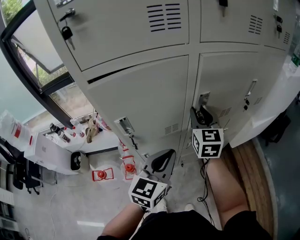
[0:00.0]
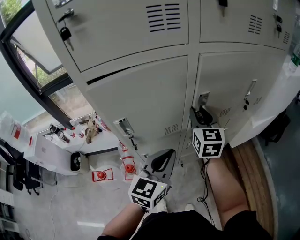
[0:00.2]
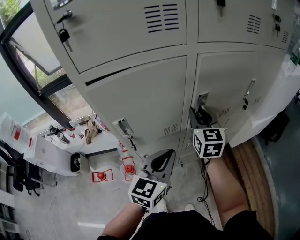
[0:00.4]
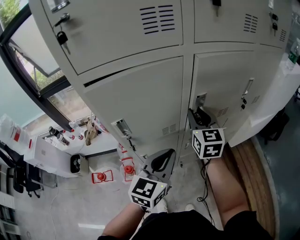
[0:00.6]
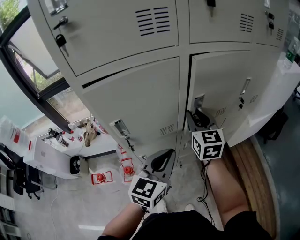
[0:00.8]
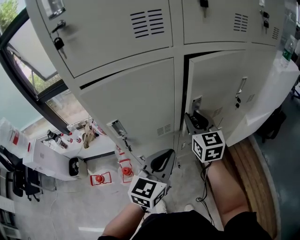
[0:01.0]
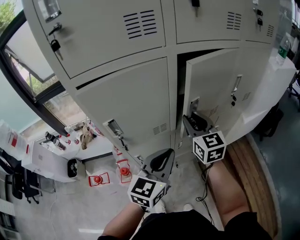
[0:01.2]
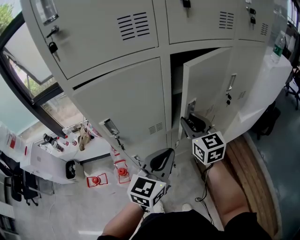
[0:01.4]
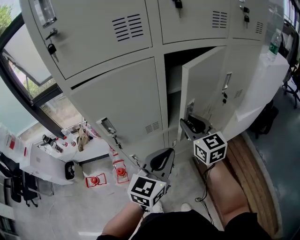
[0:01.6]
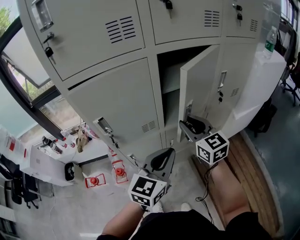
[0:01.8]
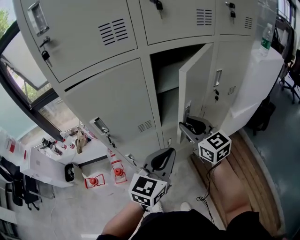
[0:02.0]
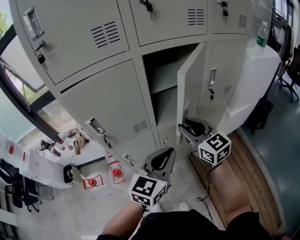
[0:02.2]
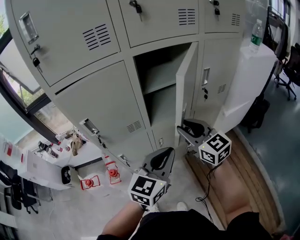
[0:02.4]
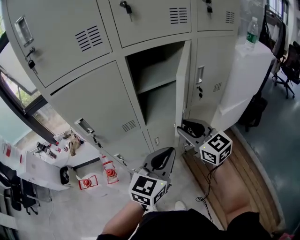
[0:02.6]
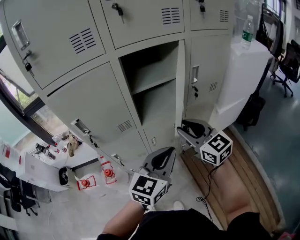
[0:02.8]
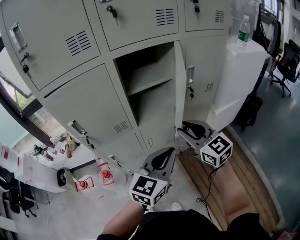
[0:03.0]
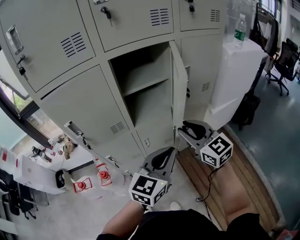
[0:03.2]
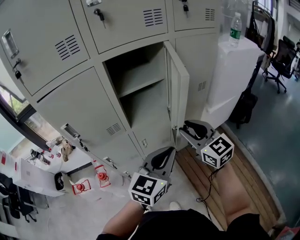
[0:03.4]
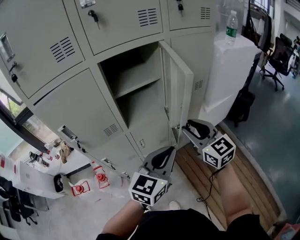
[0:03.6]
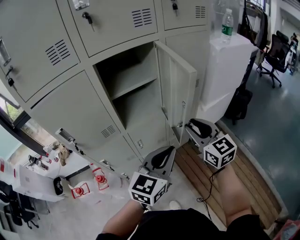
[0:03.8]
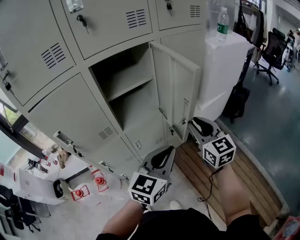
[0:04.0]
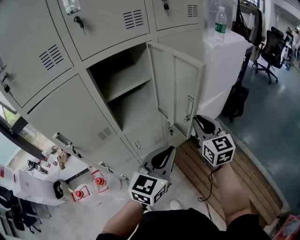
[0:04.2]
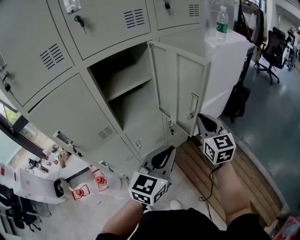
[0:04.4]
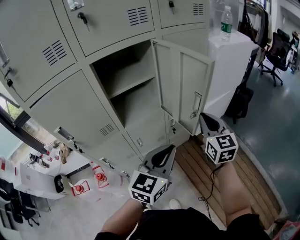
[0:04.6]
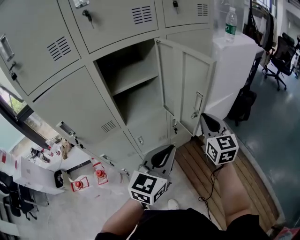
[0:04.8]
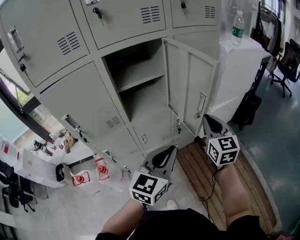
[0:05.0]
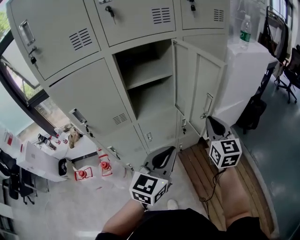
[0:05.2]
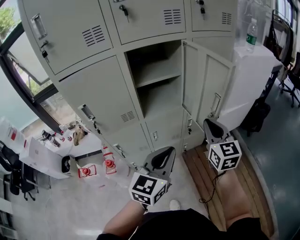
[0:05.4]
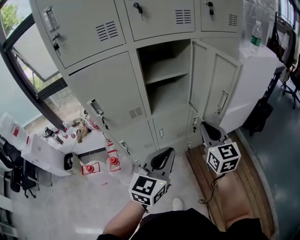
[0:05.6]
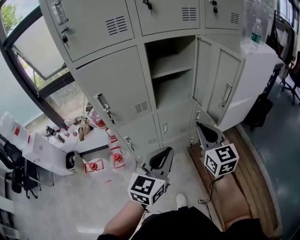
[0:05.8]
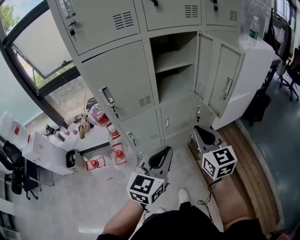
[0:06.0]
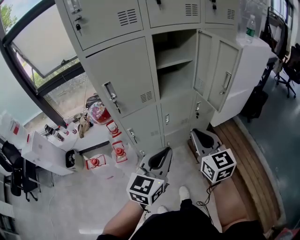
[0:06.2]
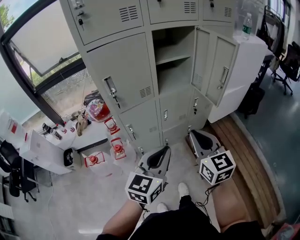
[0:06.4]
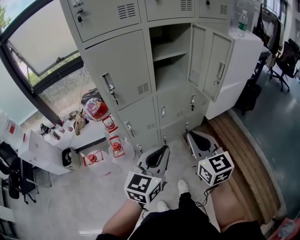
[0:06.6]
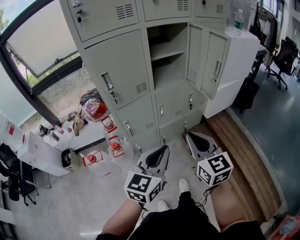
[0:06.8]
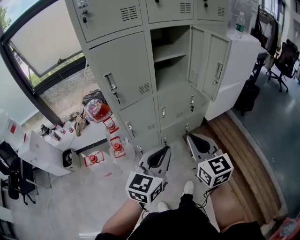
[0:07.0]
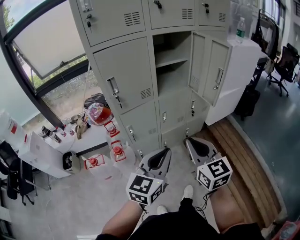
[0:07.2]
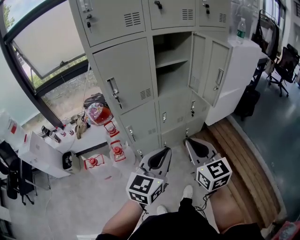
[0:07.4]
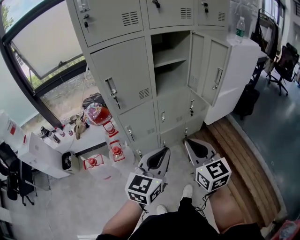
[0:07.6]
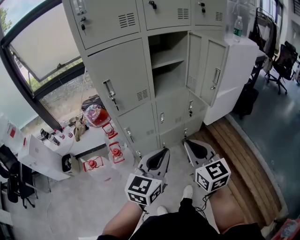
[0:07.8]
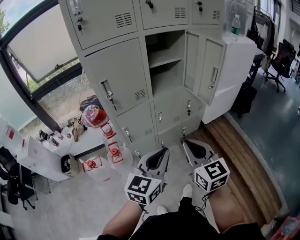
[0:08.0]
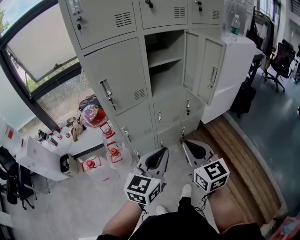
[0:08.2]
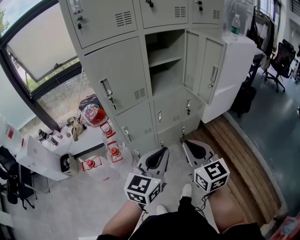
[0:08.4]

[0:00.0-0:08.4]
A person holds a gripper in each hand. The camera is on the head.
0:00.0 to 0:01.4: The left gripper travels to the right by some 5 cm, while the right gripper moves backward, some 5 cm.
0:01.4 to 0:02.8: The right gripper moves to the right and backward, approximately 15 cm. Meanwhile the left gripper shifts about 15 cm to the right.
0:02.8 to 0:04.2: The right gripper heads to the right, covering about 15 cm, and changes its angle by approximately 30 degrees. The left gripper is displaced to the right by roughly 10 cm.
0:04.2 to 0:05.6: Both grippers travel together to the left and backward, roughly 10 cm.
0:05.6 to 0:07.0: The two grippers go approximately 20 cm backward and to the left.
0:07.0 to 0:08.4: The grippers make only small movements.

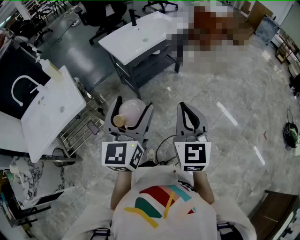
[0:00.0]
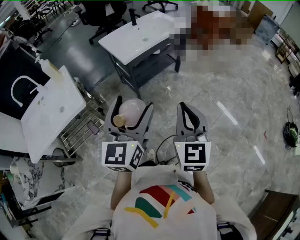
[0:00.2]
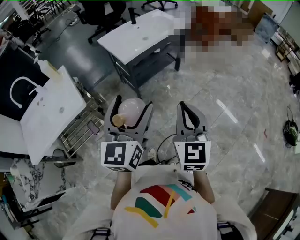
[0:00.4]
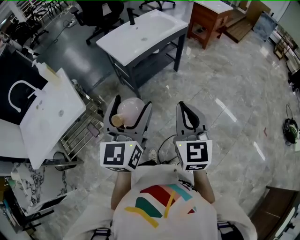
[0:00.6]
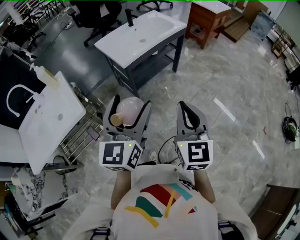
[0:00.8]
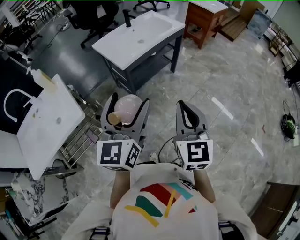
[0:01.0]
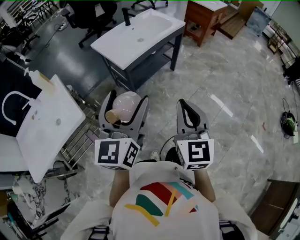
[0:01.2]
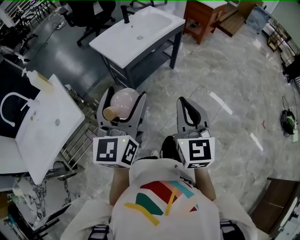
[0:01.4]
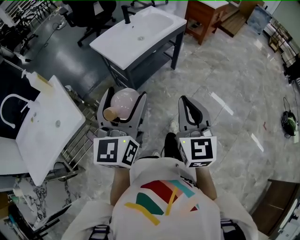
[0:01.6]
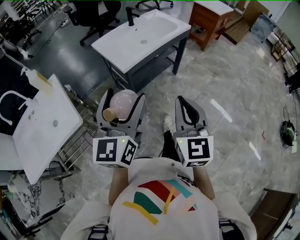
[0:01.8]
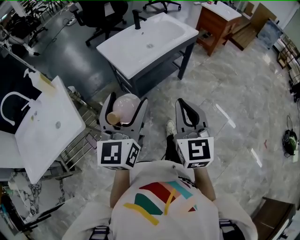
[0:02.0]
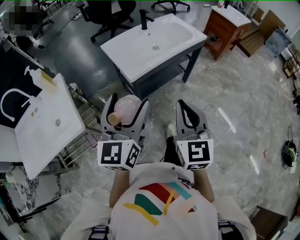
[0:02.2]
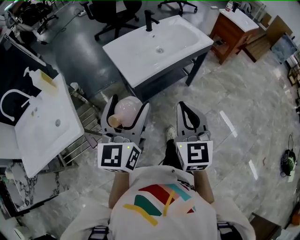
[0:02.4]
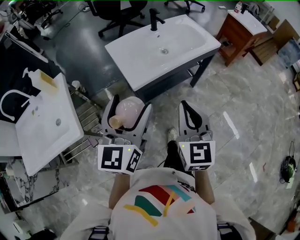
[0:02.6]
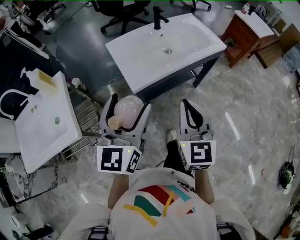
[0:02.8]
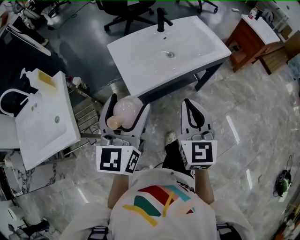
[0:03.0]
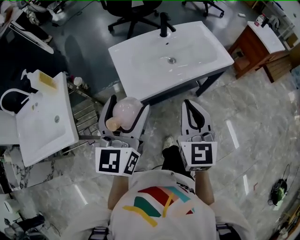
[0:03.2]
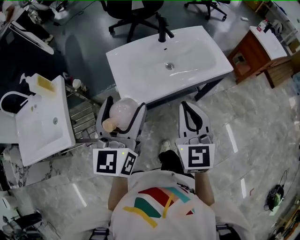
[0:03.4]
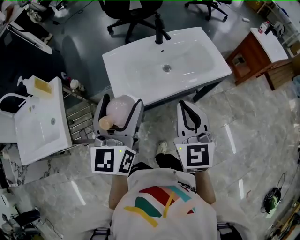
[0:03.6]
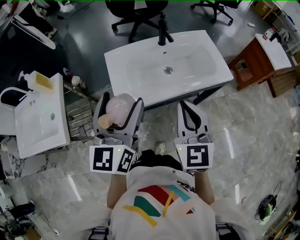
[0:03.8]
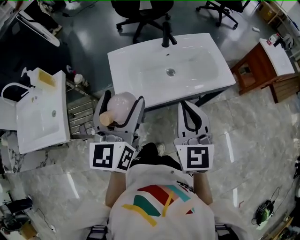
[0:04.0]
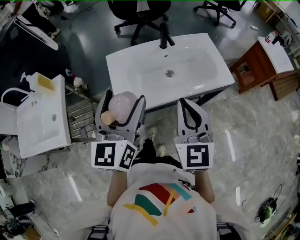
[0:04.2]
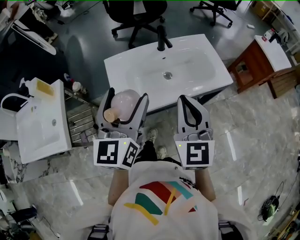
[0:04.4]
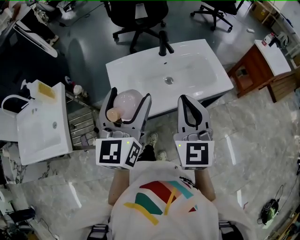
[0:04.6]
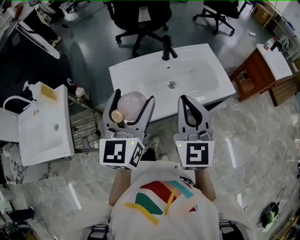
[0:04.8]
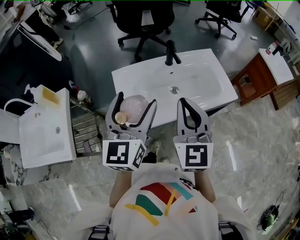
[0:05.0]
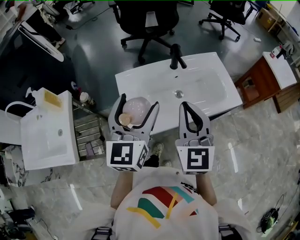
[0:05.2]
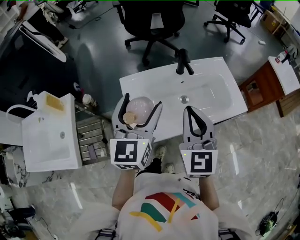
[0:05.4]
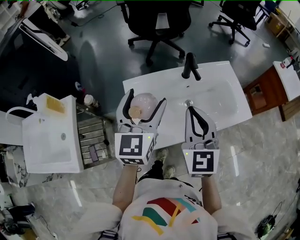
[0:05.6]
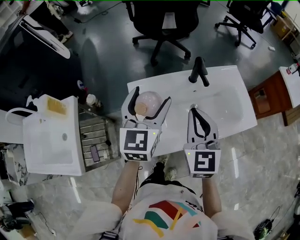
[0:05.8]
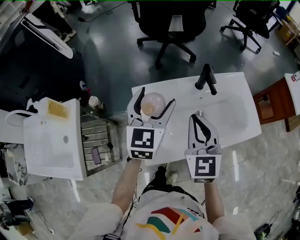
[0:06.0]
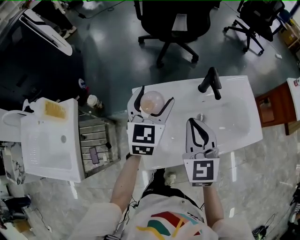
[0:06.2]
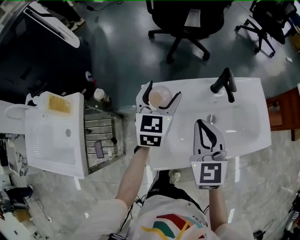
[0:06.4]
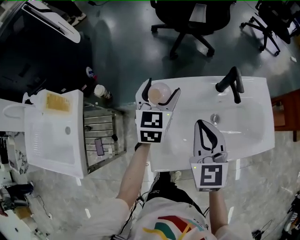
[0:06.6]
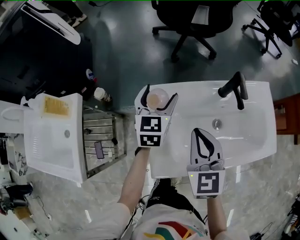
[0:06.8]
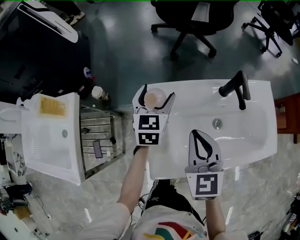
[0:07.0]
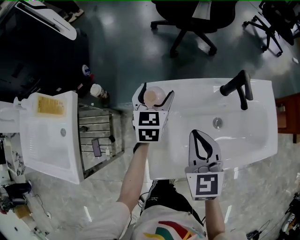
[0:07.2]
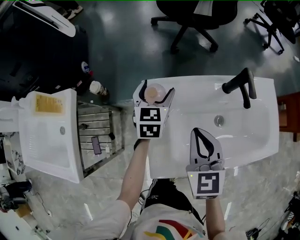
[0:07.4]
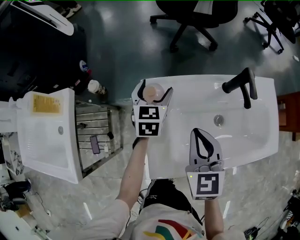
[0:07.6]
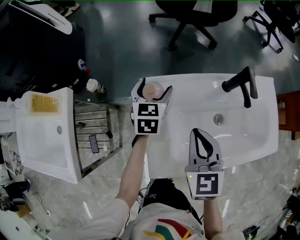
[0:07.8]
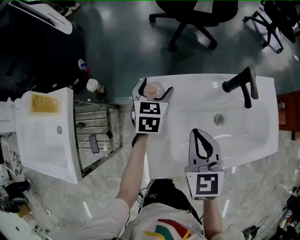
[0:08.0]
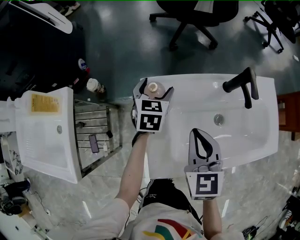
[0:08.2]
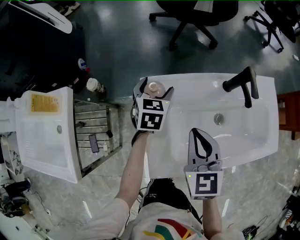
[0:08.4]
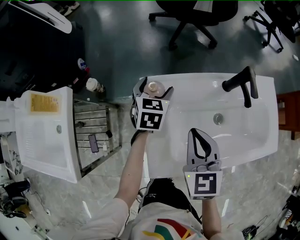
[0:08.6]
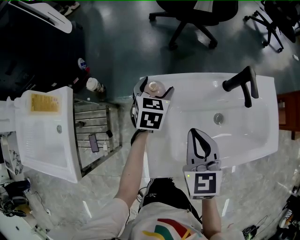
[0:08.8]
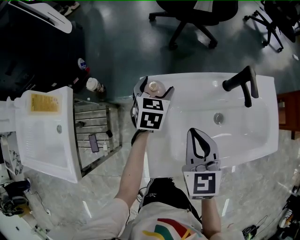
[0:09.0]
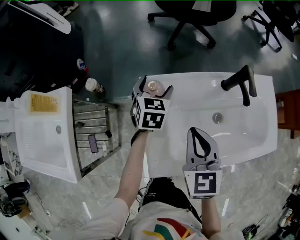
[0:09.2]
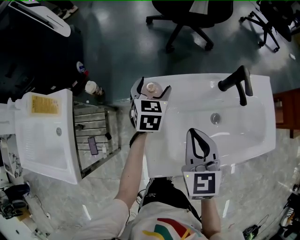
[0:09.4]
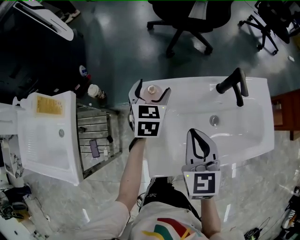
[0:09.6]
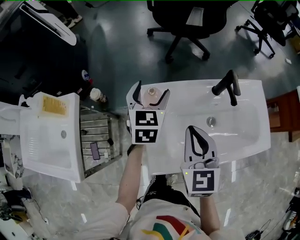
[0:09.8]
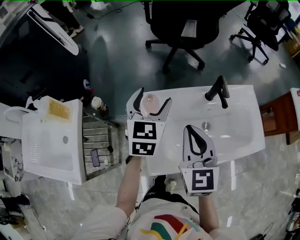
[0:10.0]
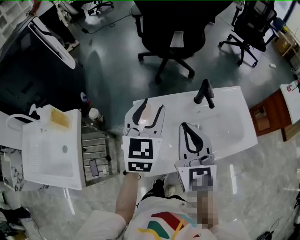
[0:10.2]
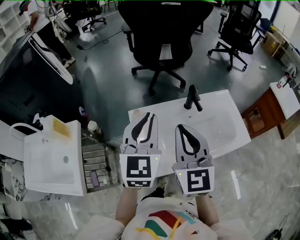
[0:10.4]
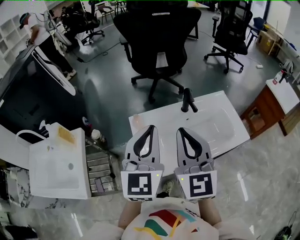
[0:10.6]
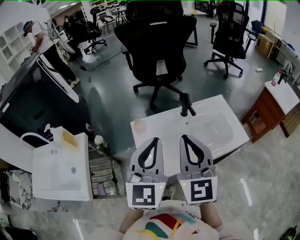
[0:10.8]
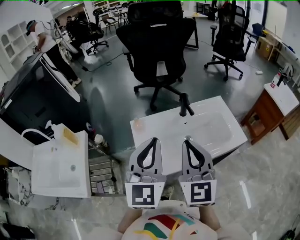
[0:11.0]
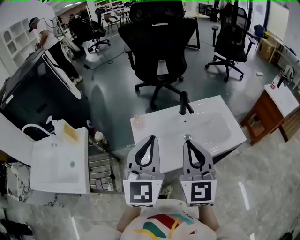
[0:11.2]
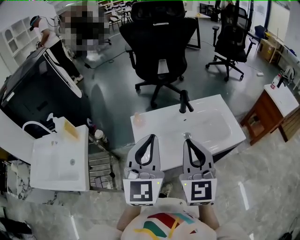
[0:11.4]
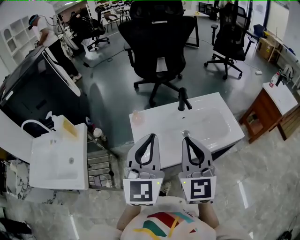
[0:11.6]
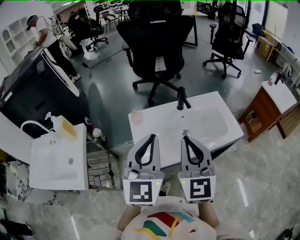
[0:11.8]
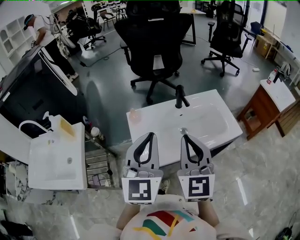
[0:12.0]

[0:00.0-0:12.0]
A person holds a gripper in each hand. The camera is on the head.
0:00.0 to 0:01.6: Both grippers travel together forward and to the left, approximately 10 cm.
0:01.6 to 0:03.0: The two grippers go approximately 25 cm forward.
0:03.0 to 0:04.4: The grippers both shift forward and to the right by some 15 cm.
0:04.4 to 0:06.0: The right gripper is displaced forward and to the left by approximately 20 cm; the left gripper moves forward, about 25 cm.
0:06.0 to 0:07.6: The right gripper is displaced downward and to the left by roughly 10 cm. The left gripper shifts about 25 cm downward and forward, and changes its angle by some 20 degrees.
0:07.6 to 0:09.0: The grippers stay close to where they were, moving slightly.
0:09.0 to 0:10.4: The left gripper moves upward and backward, some 35 cm, swivels some 30 degrees, and closes its fingers, while the right gripper goes about 20 cm upward, and changes its angle by some 20 degrees.
0:10.4 to 0:12.0: The right gripper travels backward and to the right by approximately 15 cm, while the left gripper heads backward, covering roughly 15 cm.

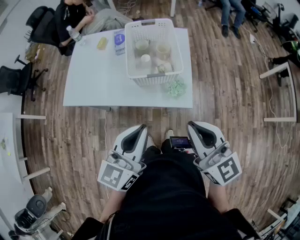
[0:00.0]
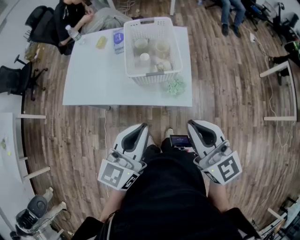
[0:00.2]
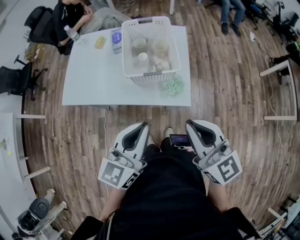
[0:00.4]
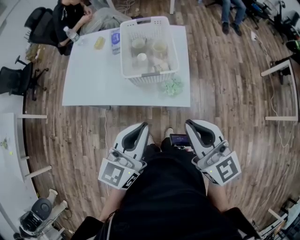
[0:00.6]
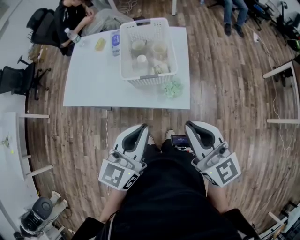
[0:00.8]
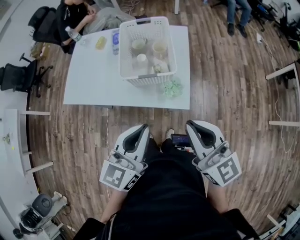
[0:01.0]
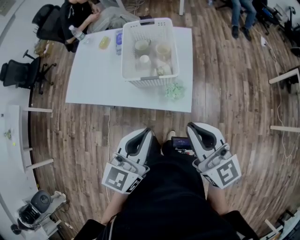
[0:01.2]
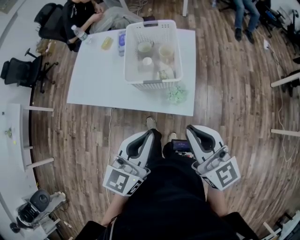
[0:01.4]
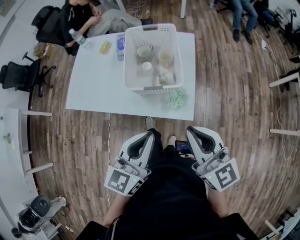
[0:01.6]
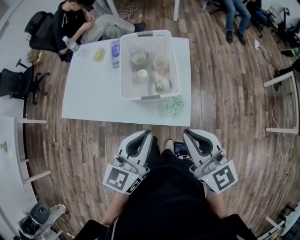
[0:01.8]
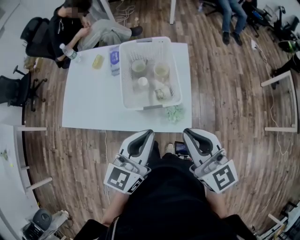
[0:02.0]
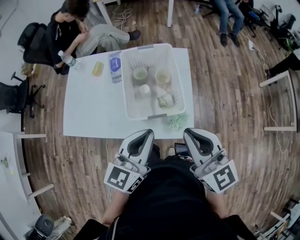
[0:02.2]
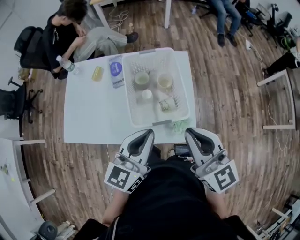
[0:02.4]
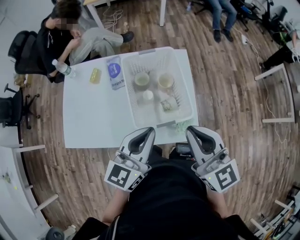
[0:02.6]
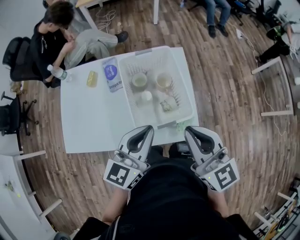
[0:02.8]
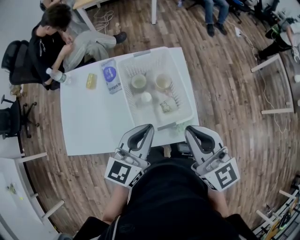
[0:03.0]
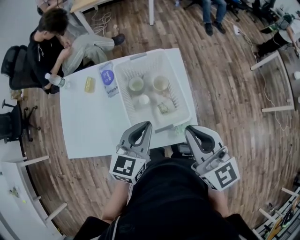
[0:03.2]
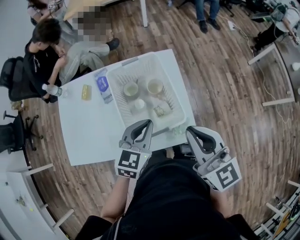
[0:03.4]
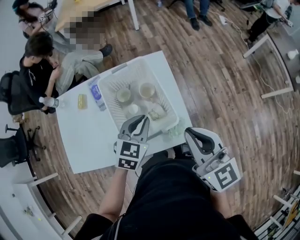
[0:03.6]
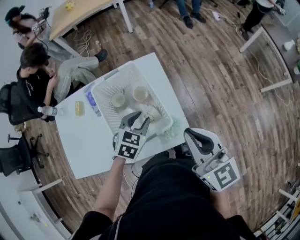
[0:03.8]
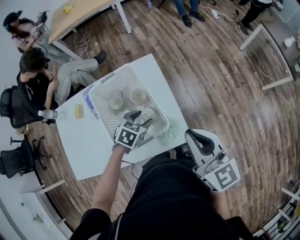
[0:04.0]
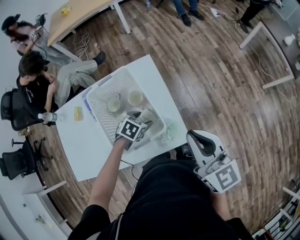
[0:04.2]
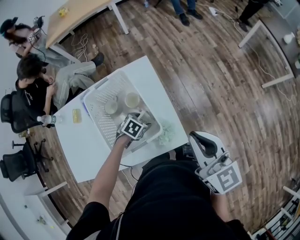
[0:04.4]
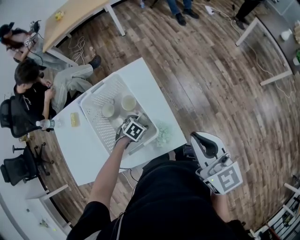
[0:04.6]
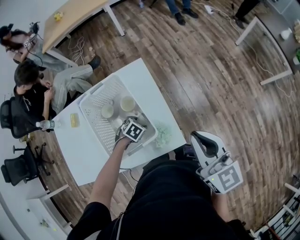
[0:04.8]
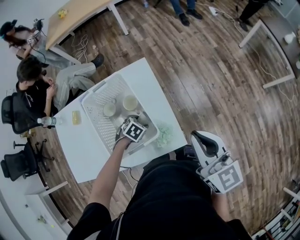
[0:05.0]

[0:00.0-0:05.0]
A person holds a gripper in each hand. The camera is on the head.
0:00.0 to 0:01.6: The right gripper goes some 5 cm forward. Meanwhile the left gripper heads to the right, covering some 5 cm.
0:01.6 to 0:03.4: The right gripper shifts roughly 15 cm forward. The left gripper shifts approximately 20 cm forward, and swivels some 30 degrees.
0:03.4 to 0:05.0: The right gripper changes place by some 15 cm. The left gripper goes some 25 cm downward, angles its fingers downward, by about 50 degrees, and opens its fingers.
